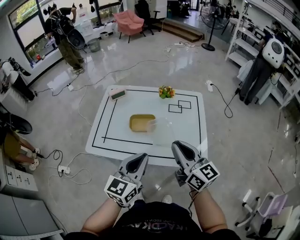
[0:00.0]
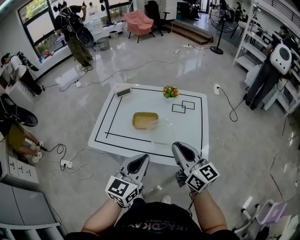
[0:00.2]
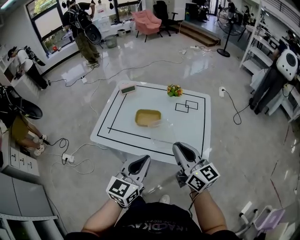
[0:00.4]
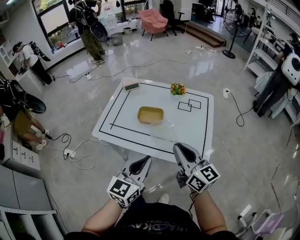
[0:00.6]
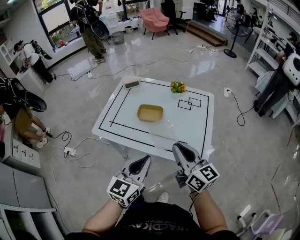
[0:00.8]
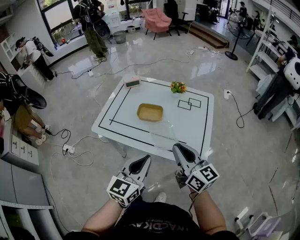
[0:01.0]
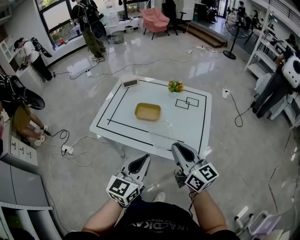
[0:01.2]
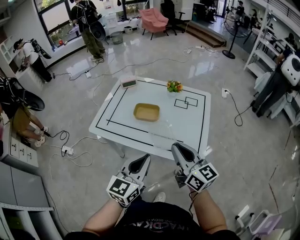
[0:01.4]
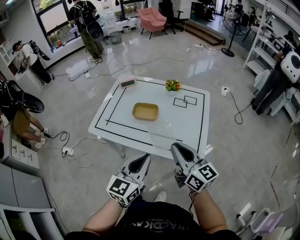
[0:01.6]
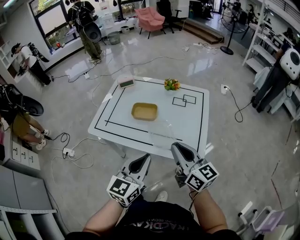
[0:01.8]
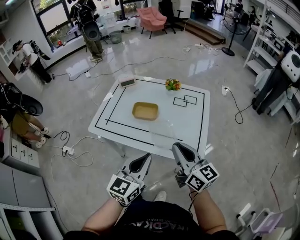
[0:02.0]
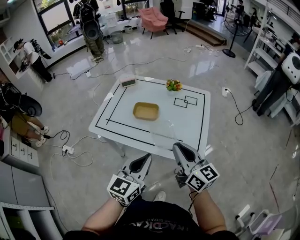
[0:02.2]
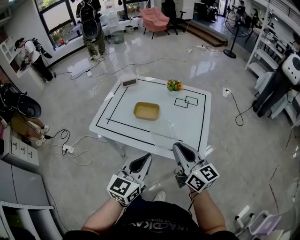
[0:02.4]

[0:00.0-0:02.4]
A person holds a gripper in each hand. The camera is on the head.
0:00.0 to 0:01.2: The left gripper is displaced backward by about 5 cm. The right gripper changes place by approximately 5 cm.
0:01.2 to 0:02.4: The grippers make only small movements.

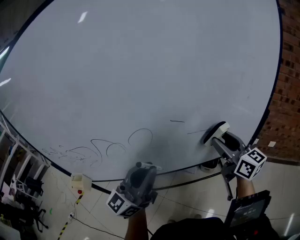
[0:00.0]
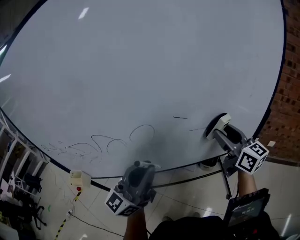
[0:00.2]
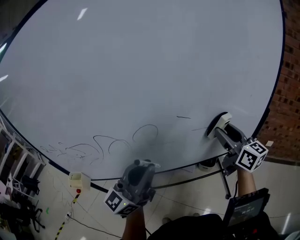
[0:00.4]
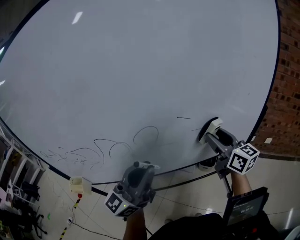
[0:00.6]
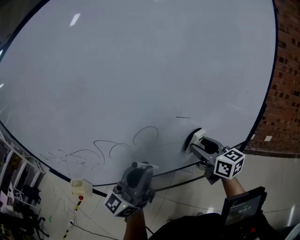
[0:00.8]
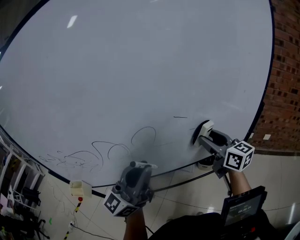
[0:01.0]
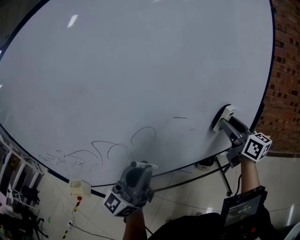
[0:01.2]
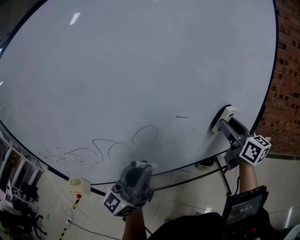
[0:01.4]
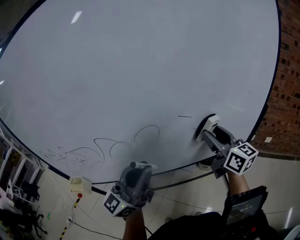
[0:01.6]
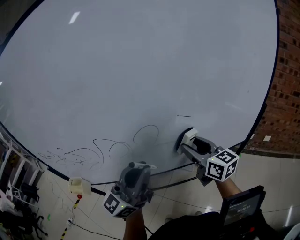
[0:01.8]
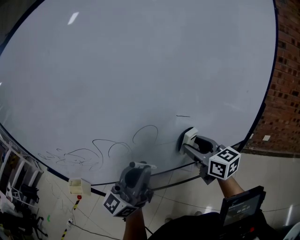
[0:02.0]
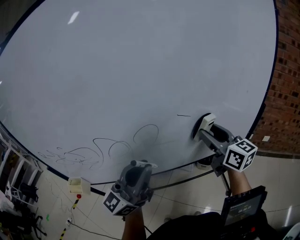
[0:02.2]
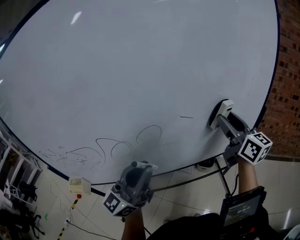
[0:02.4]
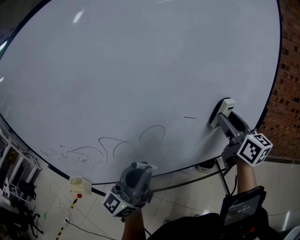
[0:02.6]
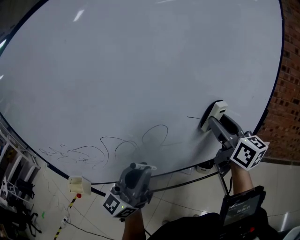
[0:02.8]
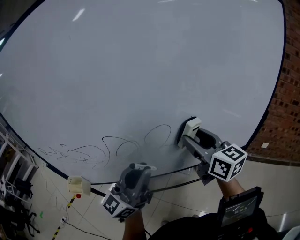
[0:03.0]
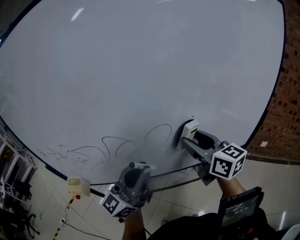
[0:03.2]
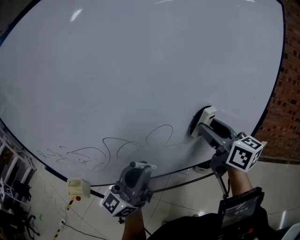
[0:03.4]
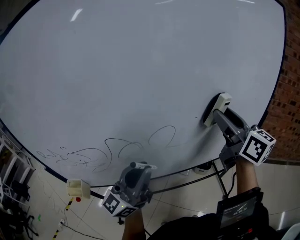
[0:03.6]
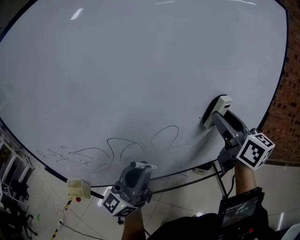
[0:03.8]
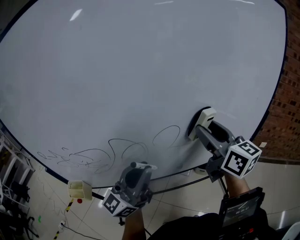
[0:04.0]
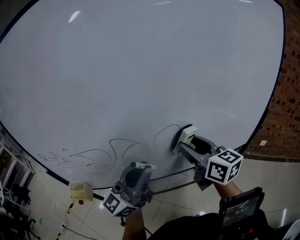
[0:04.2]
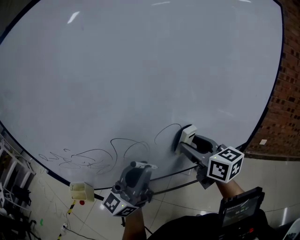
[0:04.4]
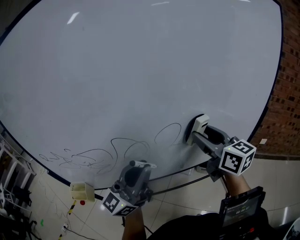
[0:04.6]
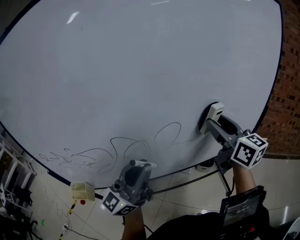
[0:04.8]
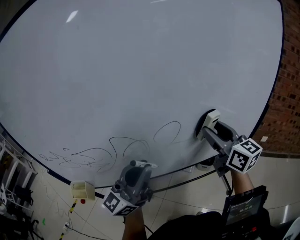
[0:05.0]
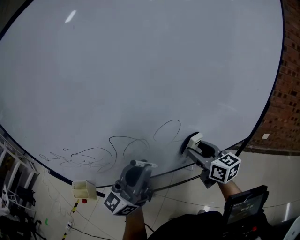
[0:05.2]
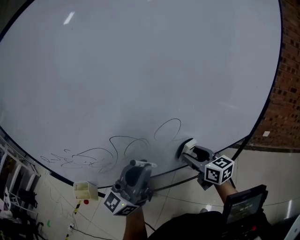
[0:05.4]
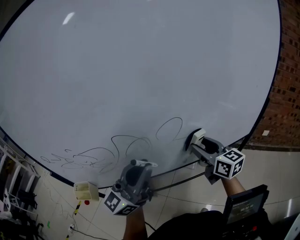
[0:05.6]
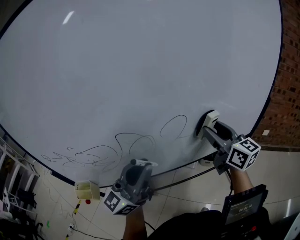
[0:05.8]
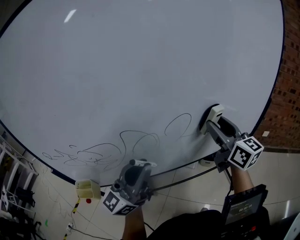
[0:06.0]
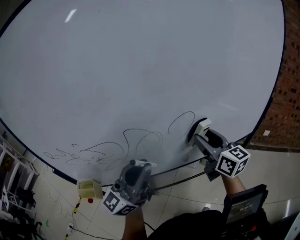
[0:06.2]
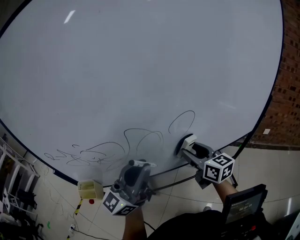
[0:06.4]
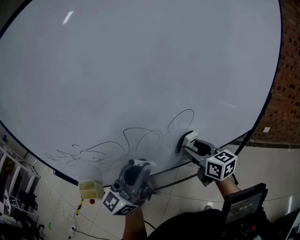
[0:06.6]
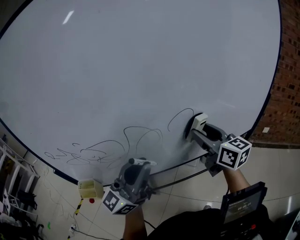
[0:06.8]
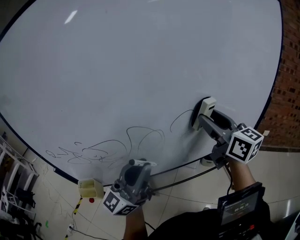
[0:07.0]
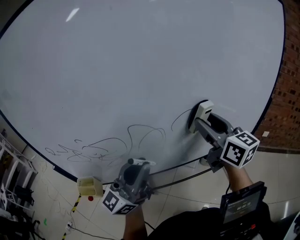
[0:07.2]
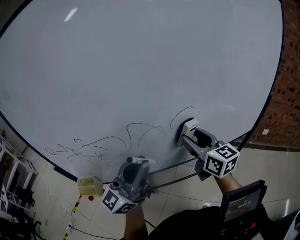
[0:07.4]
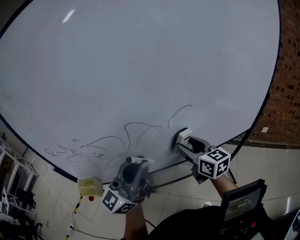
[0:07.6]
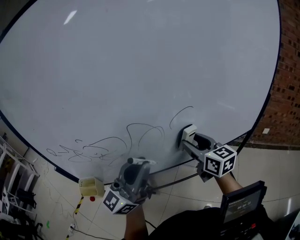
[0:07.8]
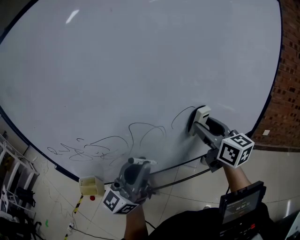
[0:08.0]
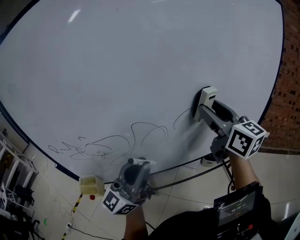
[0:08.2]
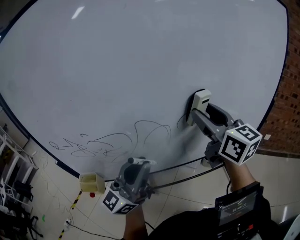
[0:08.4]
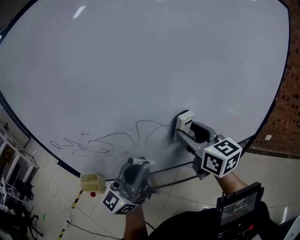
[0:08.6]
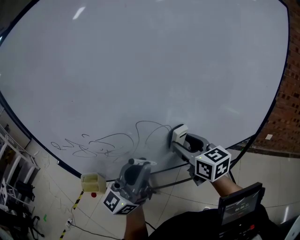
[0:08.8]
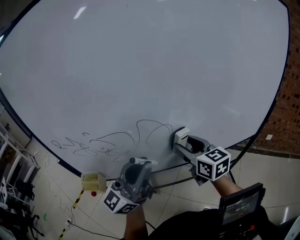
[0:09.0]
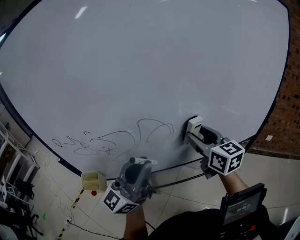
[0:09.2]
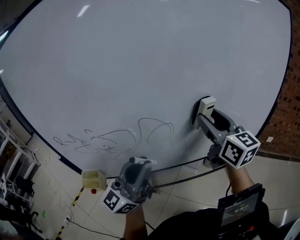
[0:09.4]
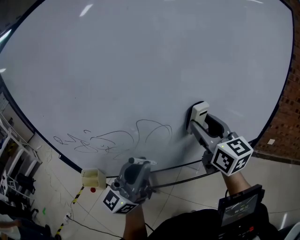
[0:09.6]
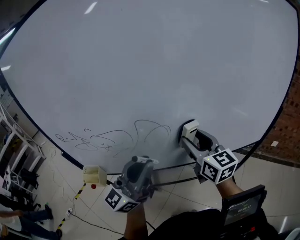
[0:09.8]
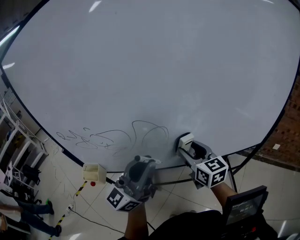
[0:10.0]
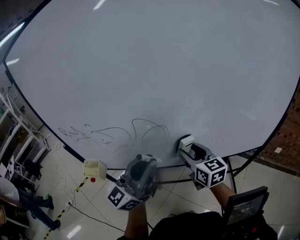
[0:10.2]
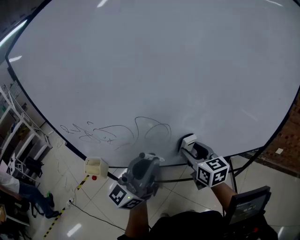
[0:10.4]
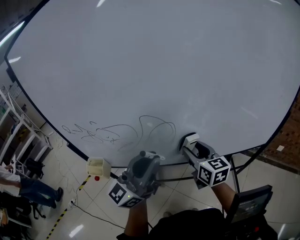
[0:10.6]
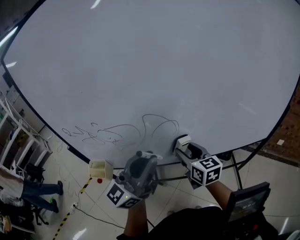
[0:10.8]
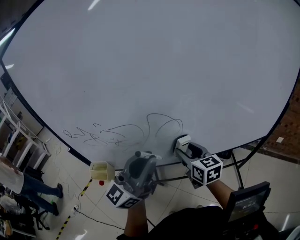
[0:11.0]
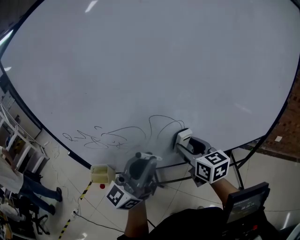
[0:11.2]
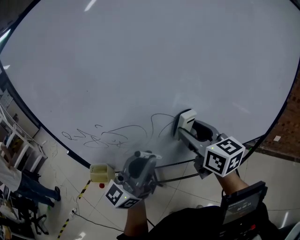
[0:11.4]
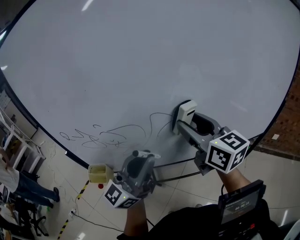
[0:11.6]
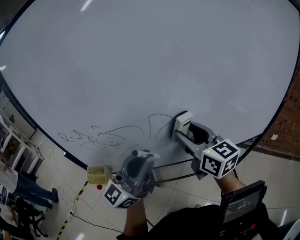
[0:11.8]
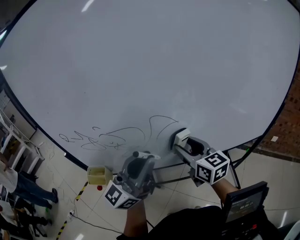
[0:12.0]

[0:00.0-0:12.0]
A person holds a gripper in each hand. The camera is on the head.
0:00.0 to 0:01.6: The right gripper goes left and right, about 15 cm each way, reversing 2 times.
0:01.6 to 0:03.0: The right gripper moves left and right over roughly 15 cm, changing direction 2 times.
0:04.4 to 0:06.0: The right gripper swings up and down, approximately 20 cm each way, with 2 reversals.
0:06.0 to 0:07.6: The right gripper moves up and down over about 15 cm, changing direction 2 times.
0:07.6 to 0:09.0: The right gripper travels upward and back again, some 20 cm each way.
0:09.0 to 0:10.4: The left gripper changes place by approximately 5 cm; the right gripper travels upward and back again, approximately 10 cm each way.
0:10.4 to 0:12.0: Both grippers move to the left, some 5 cm. The right gripper reaches roughly 15 cm upward, then returns.

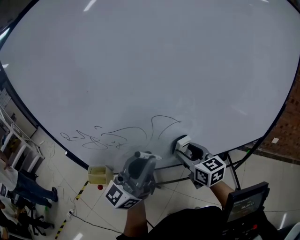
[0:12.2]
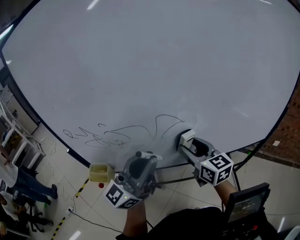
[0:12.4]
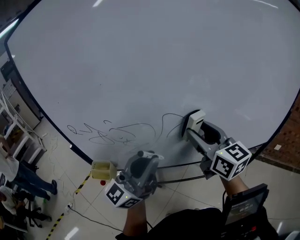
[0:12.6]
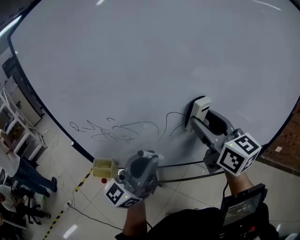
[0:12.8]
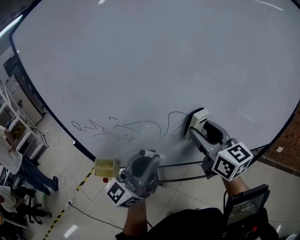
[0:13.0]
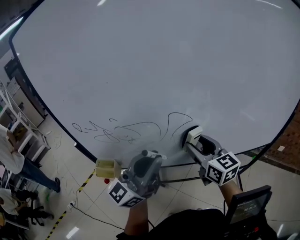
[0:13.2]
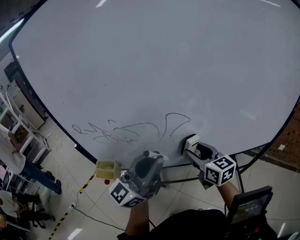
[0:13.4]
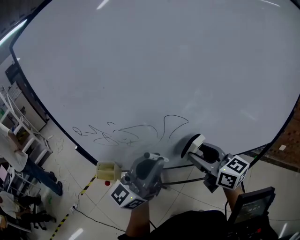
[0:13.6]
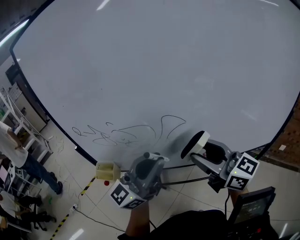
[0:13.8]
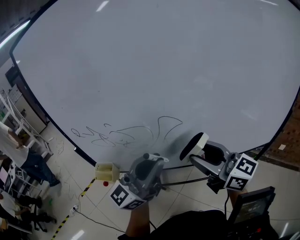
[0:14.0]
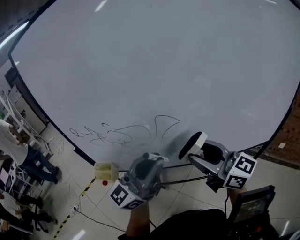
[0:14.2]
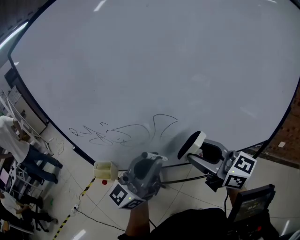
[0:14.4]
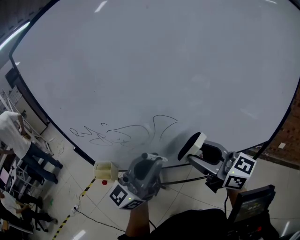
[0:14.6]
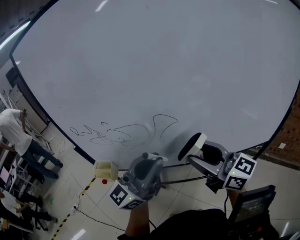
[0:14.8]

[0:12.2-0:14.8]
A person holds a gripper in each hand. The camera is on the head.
0:12.2 to 0:13.4: The right gripper moves roughly 20 cm upward and comes back.
0:13.4 to 0:14.8: The right gripper is displaced upward and backward by about 15 cm, and swivels roughly 30 degrees.

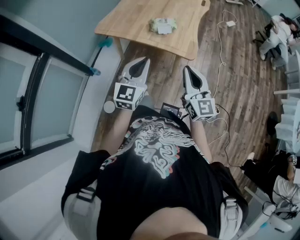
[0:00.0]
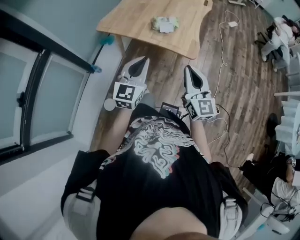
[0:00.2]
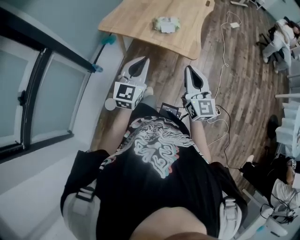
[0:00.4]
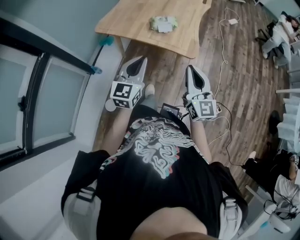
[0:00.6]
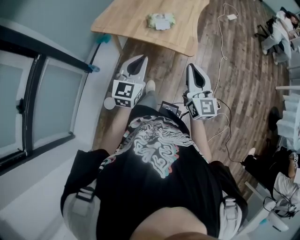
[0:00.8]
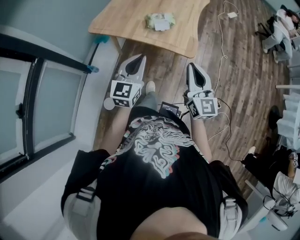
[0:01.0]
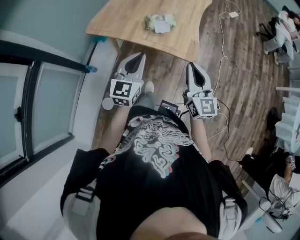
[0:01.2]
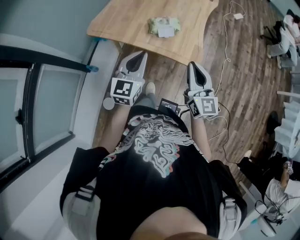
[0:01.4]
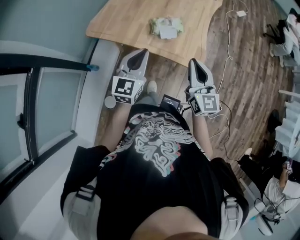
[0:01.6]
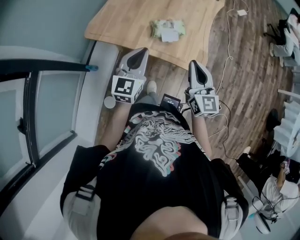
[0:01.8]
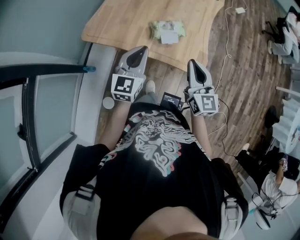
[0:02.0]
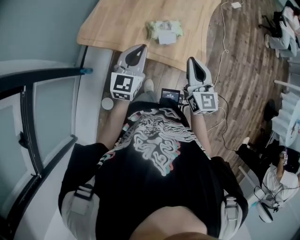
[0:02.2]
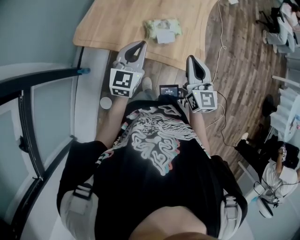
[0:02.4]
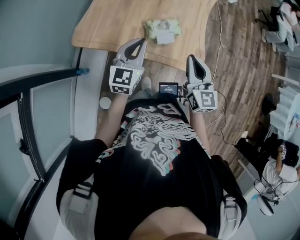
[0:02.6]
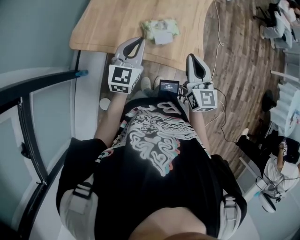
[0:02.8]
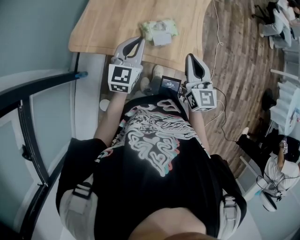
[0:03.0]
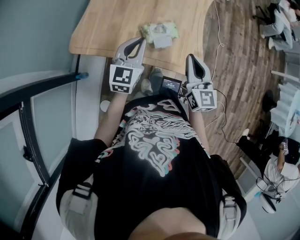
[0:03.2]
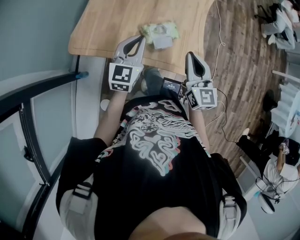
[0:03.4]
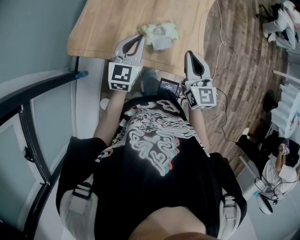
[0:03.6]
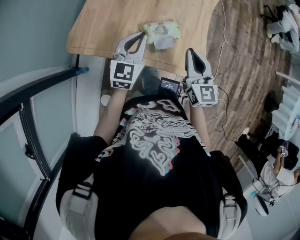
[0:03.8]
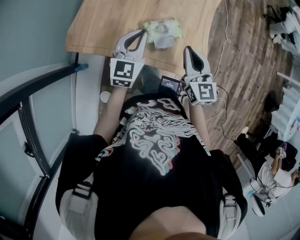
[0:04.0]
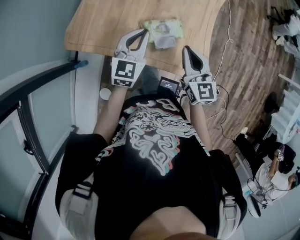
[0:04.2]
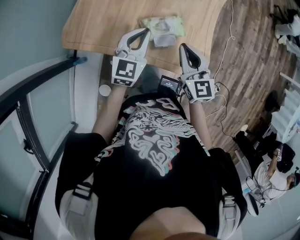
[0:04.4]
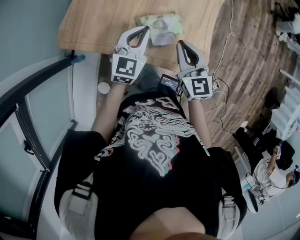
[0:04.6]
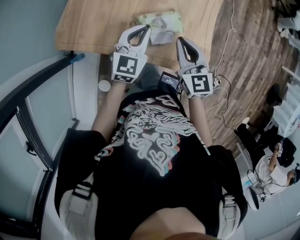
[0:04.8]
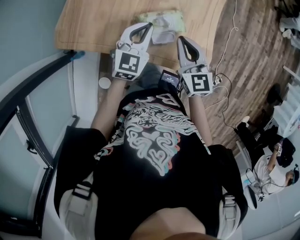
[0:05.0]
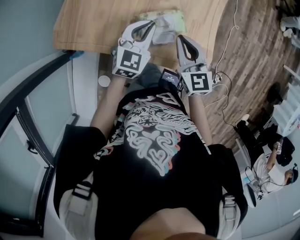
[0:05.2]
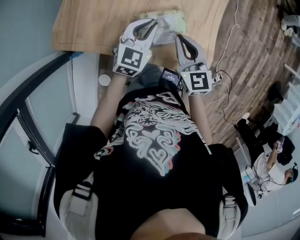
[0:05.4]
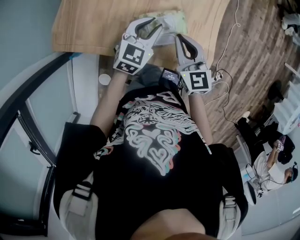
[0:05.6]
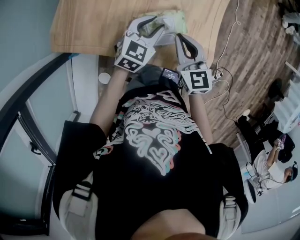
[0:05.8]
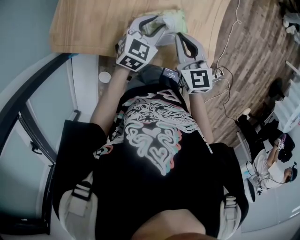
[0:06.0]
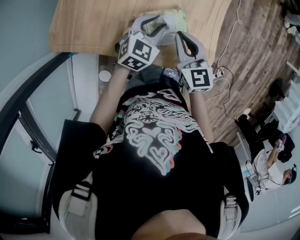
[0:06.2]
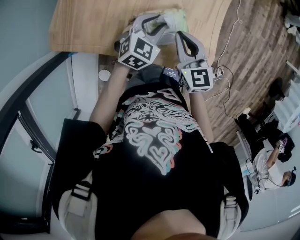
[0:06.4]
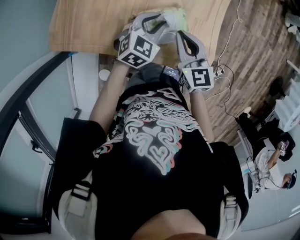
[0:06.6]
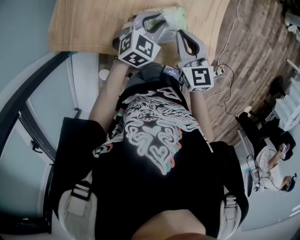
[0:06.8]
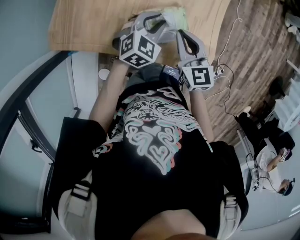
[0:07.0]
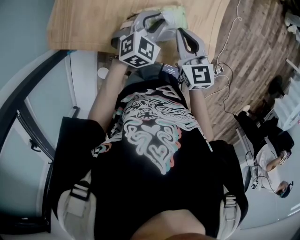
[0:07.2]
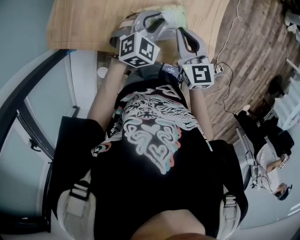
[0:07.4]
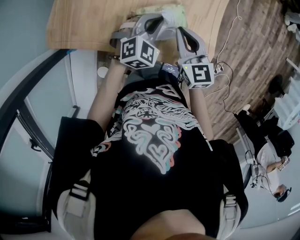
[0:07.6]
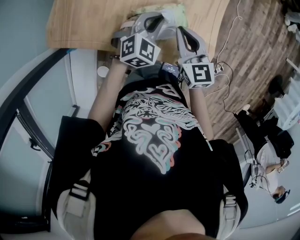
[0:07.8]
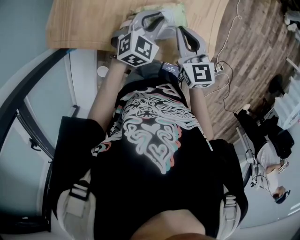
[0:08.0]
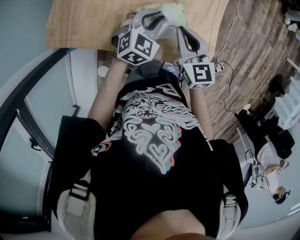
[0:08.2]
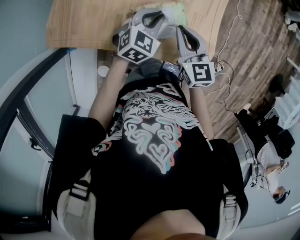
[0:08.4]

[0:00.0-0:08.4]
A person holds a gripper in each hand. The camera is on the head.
0:00.0 to 0:01.4: Both grippers travel together forward, some 15 cm.
0:01.4 to 0:02.8: The two grippers go approximately 15 cm forward.
0:02.8 to 0:04.2: Both grippers move forward and downward, about 10 cm.
0:04.2 to 0:05.6: The left gripper shifts about 10 cm downward and to the right, while the right gripper goes some 10 cm downward.
0:05.6 to 0:07.0: The grippers move only a little.
0:07.0 to 0:08.4: The grippers move only a little.
